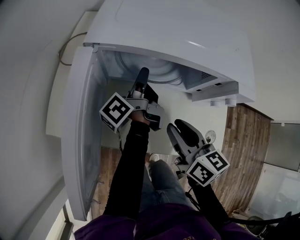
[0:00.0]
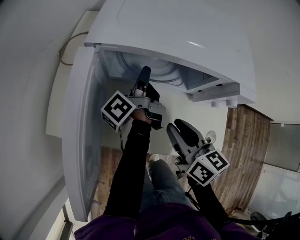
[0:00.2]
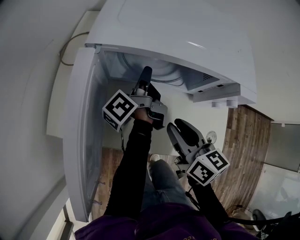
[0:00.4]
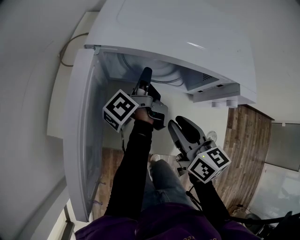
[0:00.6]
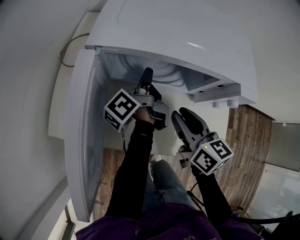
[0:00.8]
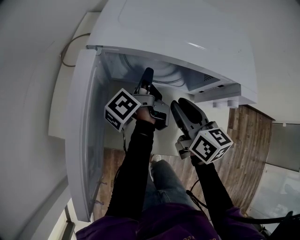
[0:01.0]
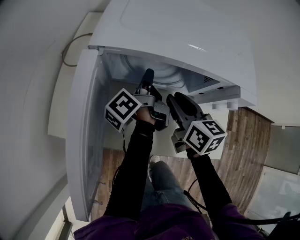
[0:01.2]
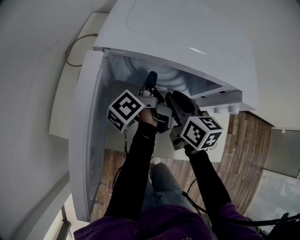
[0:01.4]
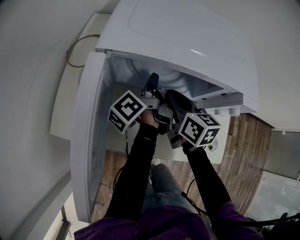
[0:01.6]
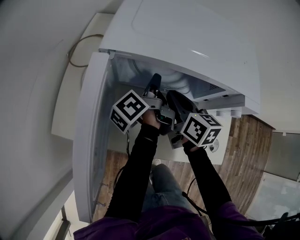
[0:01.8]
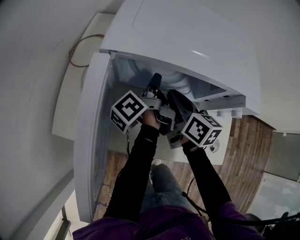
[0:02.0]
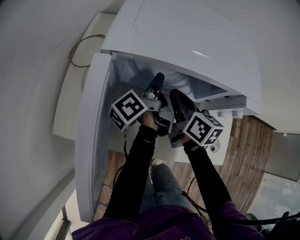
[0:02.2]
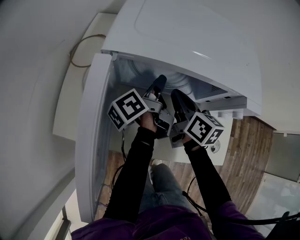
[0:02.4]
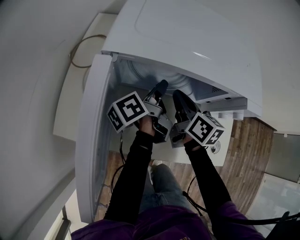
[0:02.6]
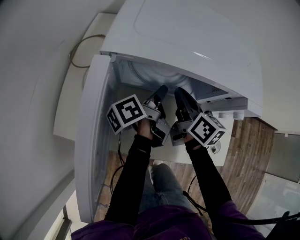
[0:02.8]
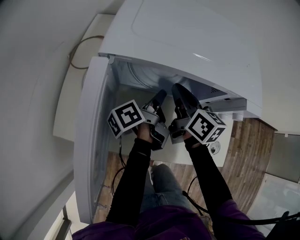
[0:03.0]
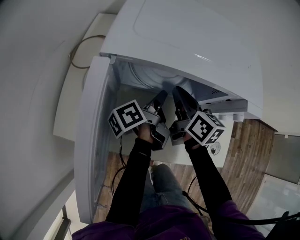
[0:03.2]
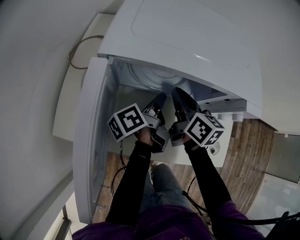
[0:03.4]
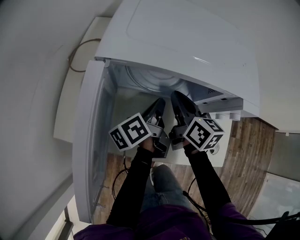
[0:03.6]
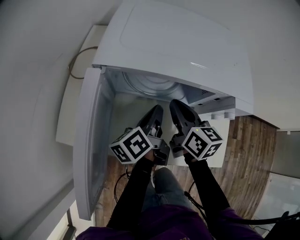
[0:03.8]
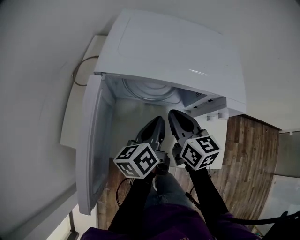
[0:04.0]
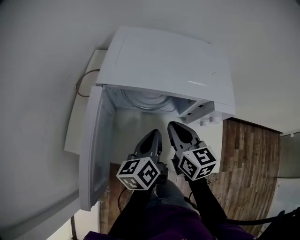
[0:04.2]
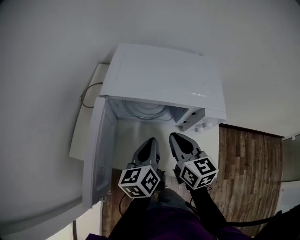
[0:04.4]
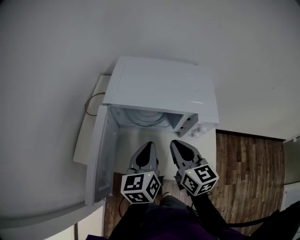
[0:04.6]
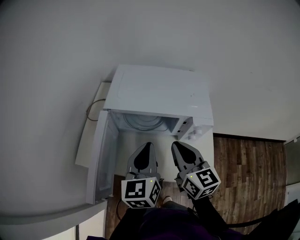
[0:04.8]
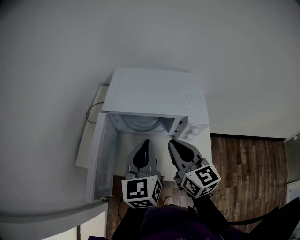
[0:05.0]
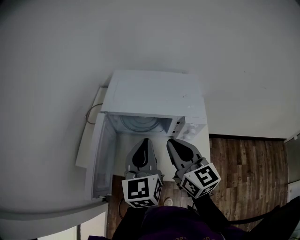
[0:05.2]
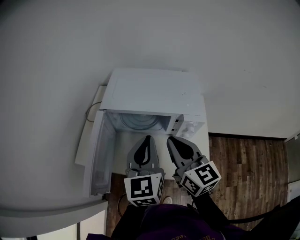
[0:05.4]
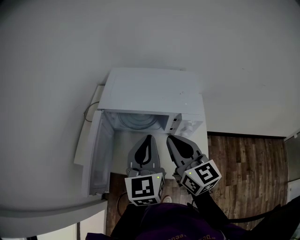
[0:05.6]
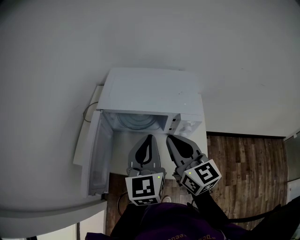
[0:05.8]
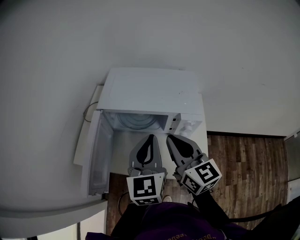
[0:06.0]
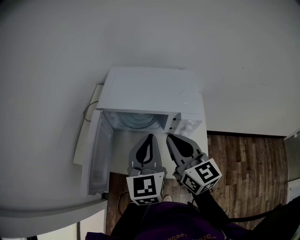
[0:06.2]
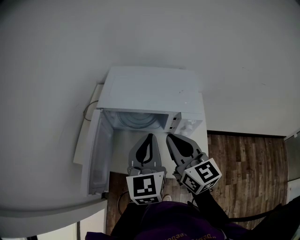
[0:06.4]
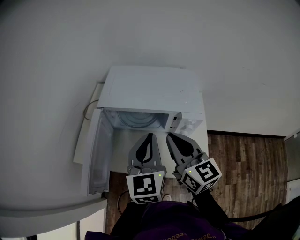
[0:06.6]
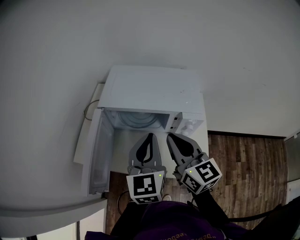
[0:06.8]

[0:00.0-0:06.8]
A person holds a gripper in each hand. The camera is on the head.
0.0 to 1.4 s: The right gripper heads forward, covering about 10 cm.
1.4 to 2.8 s: The right gripper closes its fingers.
2.8 to 4.0 s: The right gripper moves backward, about 5 cm, while the left gripper goes some 10 cm backward and upward, and rotates some 30 degrees.
4.0 to 5.4 s: The right gripper goes roughly 20 cm upward and backward. The left gripper moves upward, some 20 cm, and rotates around the line of its fingers by approximately 50 degrees, clockwise from behind.
5.4 to 6.8 s: The grippers make only small movements.

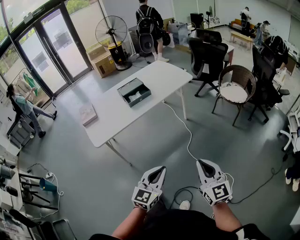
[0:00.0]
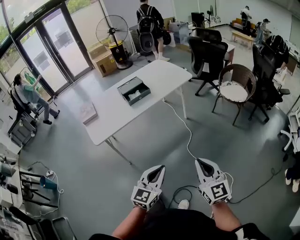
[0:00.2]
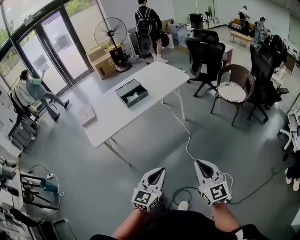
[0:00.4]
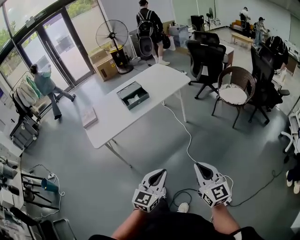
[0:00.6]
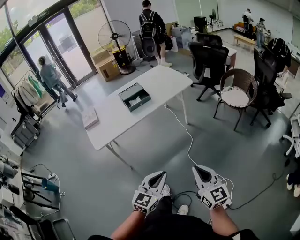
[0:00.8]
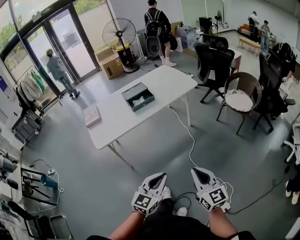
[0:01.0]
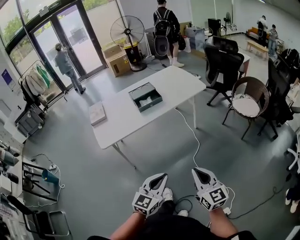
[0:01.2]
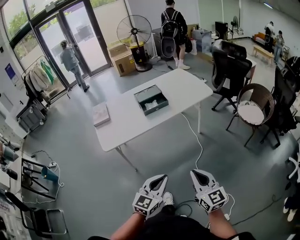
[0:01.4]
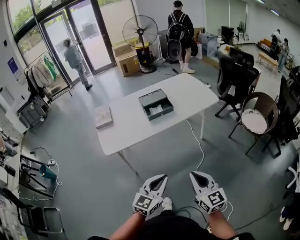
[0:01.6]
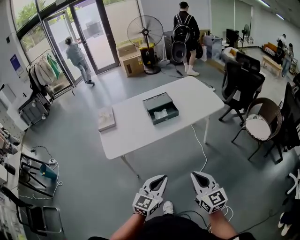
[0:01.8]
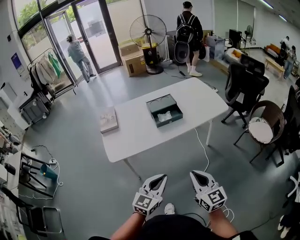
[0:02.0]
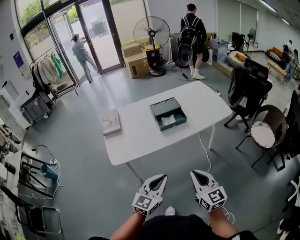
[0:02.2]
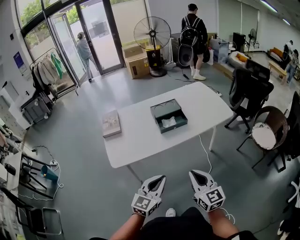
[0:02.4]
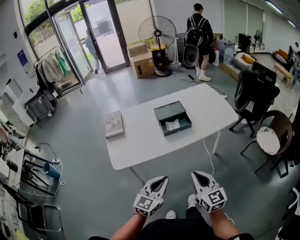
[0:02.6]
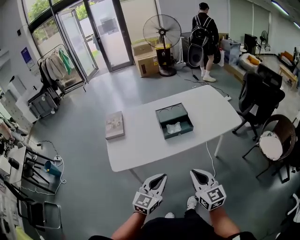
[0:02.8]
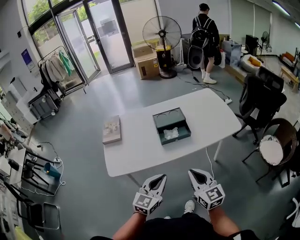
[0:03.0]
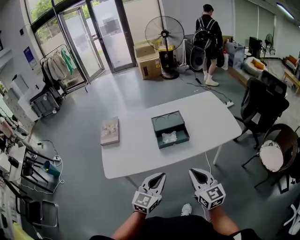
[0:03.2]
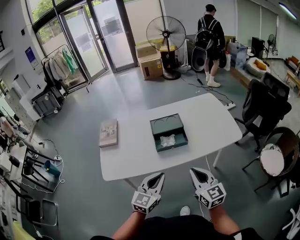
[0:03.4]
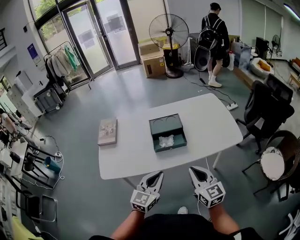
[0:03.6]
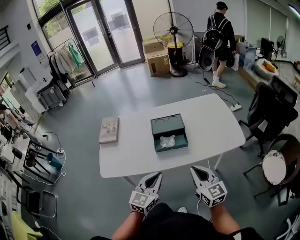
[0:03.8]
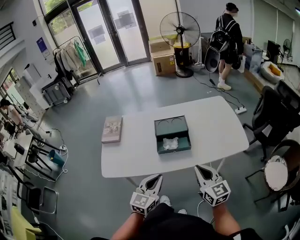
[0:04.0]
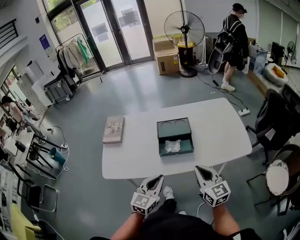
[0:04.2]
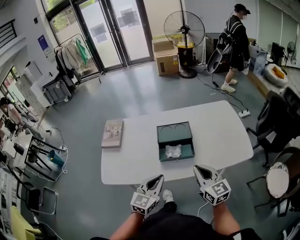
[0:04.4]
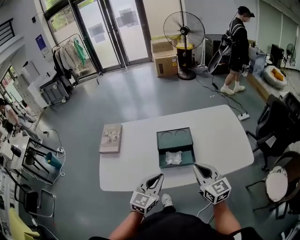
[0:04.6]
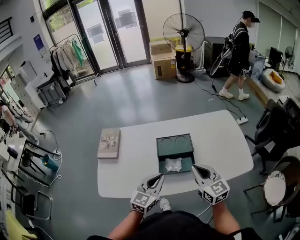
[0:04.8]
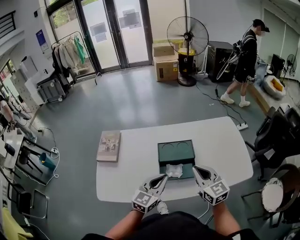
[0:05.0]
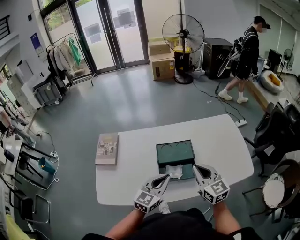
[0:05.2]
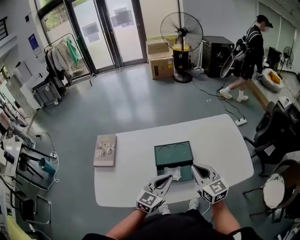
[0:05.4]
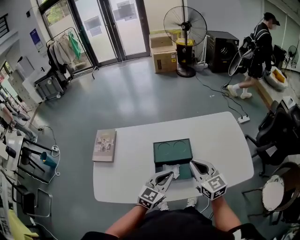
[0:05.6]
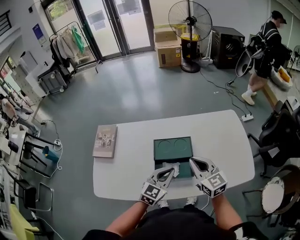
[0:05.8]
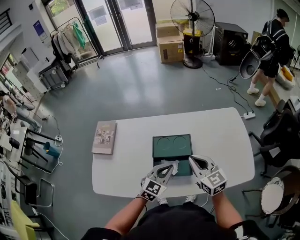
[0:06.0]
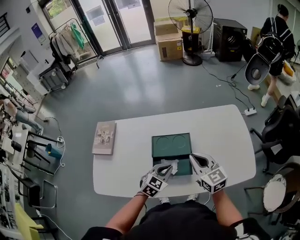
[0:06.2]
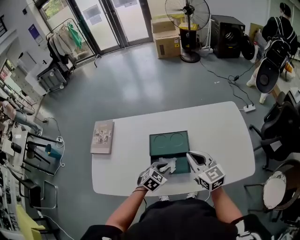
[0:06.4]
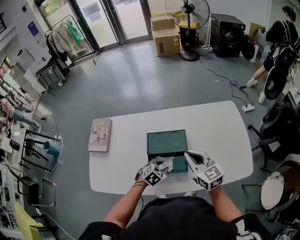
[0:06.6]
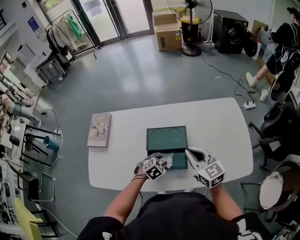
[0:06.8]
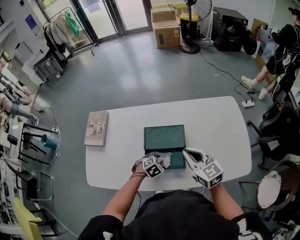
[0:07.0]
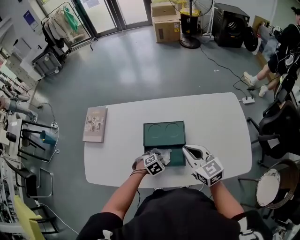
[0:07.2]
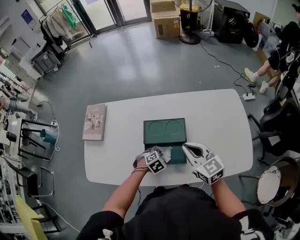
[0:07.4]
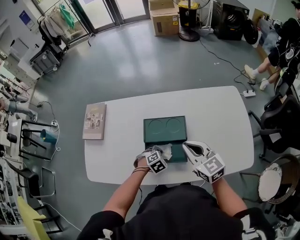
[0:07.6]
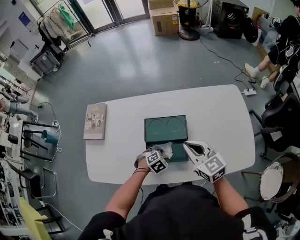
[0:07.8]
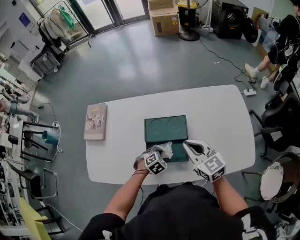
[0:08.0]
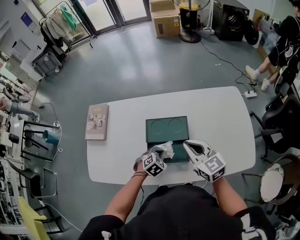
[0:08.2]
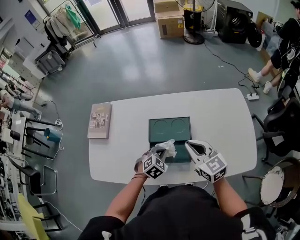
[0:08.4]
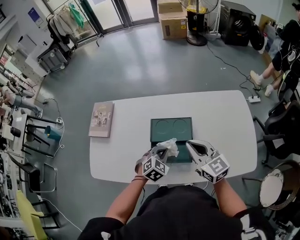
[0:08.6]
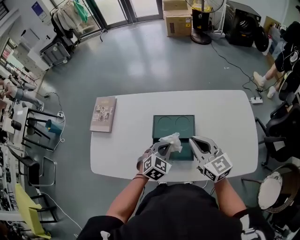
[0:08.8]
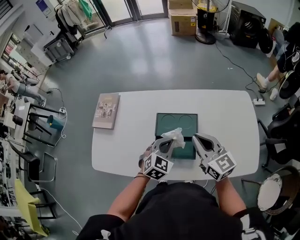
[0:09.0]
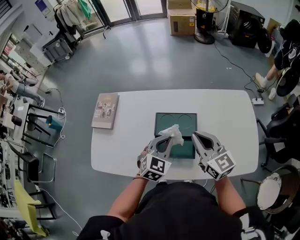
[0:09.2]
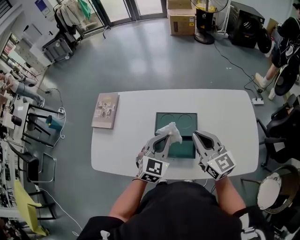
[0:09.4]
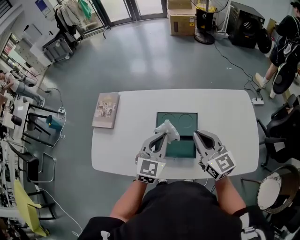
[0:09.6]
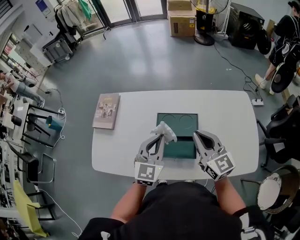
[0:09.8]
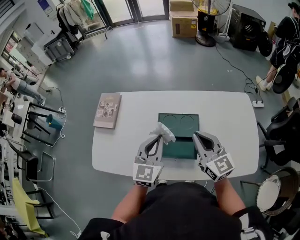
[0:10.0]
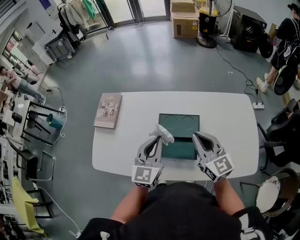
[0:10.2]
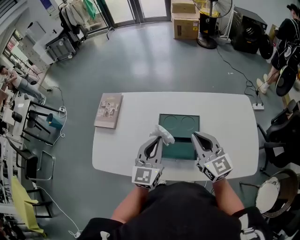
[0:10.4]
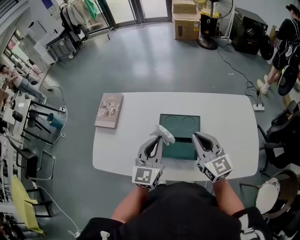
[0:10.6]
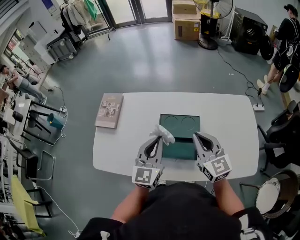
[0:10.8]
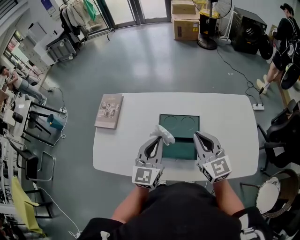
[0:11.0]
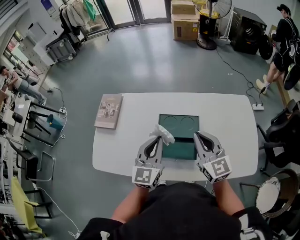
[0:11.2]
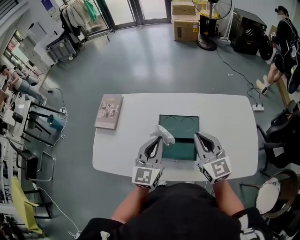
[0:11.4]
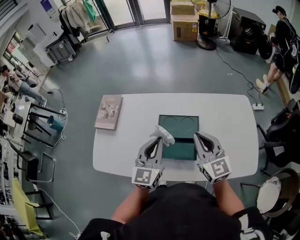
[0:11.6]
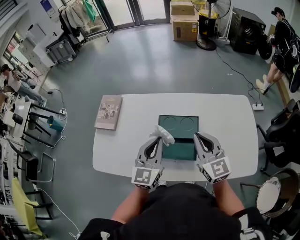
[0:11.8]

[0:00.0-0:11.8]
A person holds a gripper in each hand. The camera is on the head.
0.0 to 1.4 s: The right gripper goes roughly 10 cm forward and to the left; the left gripper is displaced forward by roughly 5 cm.
1.4 to 3.0 s: Both grippers move forward, some 30 cm.
3.0 to 4.4 s: The two grippers go roughly 20 cm forward.
4.4 to 6.0 s: Both grippers move forward, roughly 20 cm.
6.0 to 7.4 s: The left gripper moves downward, about 20 cm, tips its fingers downward by some 50 degrees, and opens, then closes once more.
7.4 to 8.8 s: The left gripper heads upward, covering some 15 cm, and changes its angle by approximately 30 degrees.
8.8 to 10.4 s: The left gripper travels upward and to the left by about 15 cm, and tips its fingers upward by about 40 degrees.
10.4 to 11.8 s: The grippers move only a little.

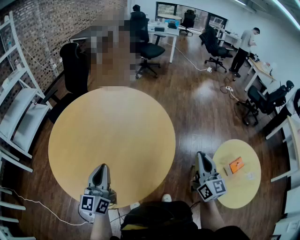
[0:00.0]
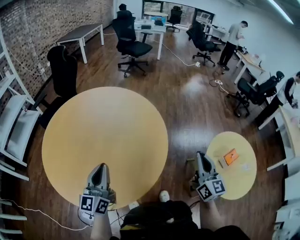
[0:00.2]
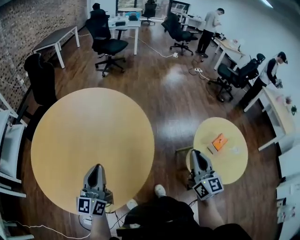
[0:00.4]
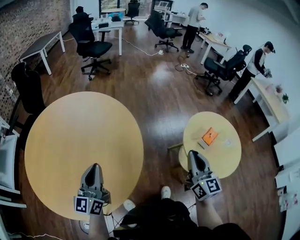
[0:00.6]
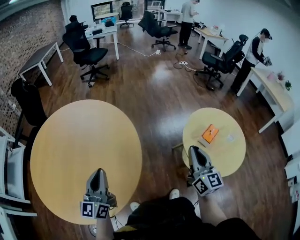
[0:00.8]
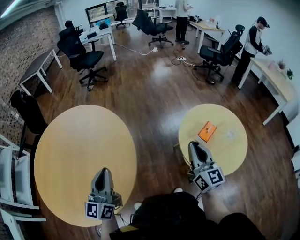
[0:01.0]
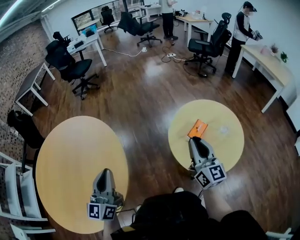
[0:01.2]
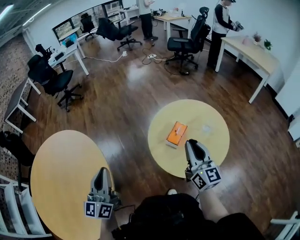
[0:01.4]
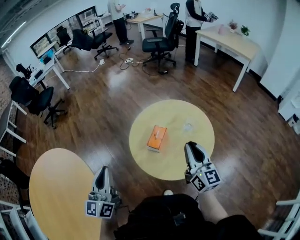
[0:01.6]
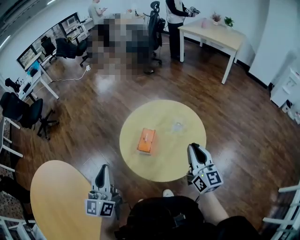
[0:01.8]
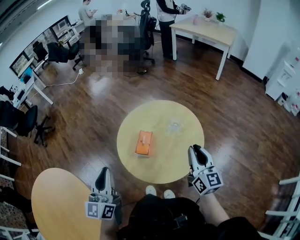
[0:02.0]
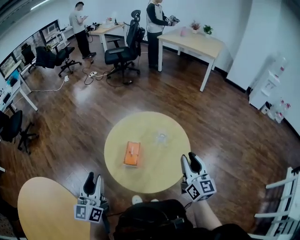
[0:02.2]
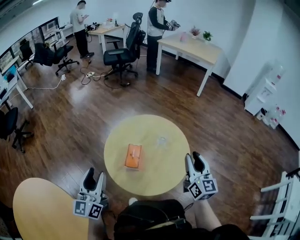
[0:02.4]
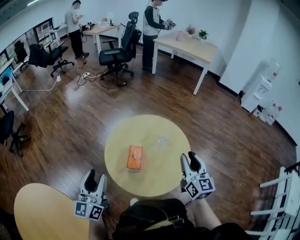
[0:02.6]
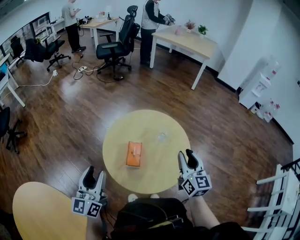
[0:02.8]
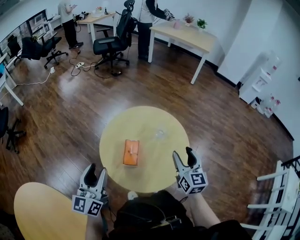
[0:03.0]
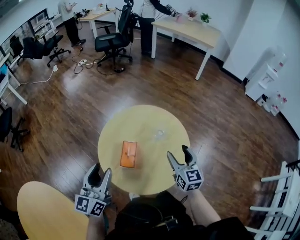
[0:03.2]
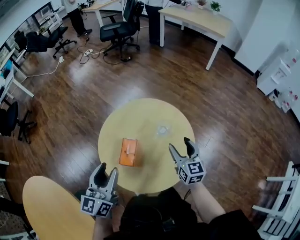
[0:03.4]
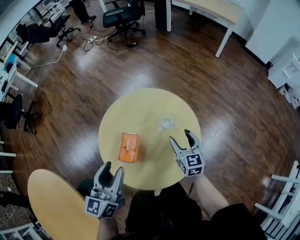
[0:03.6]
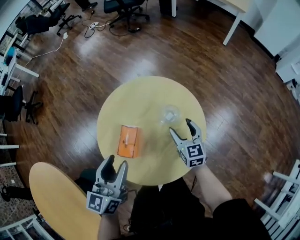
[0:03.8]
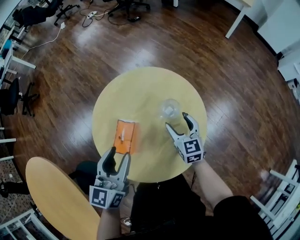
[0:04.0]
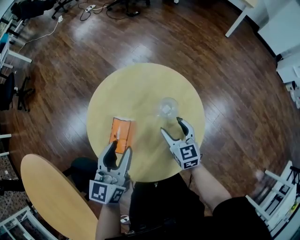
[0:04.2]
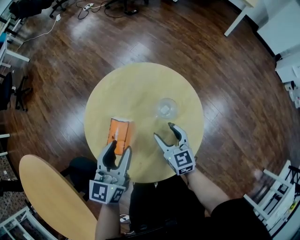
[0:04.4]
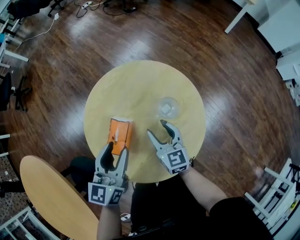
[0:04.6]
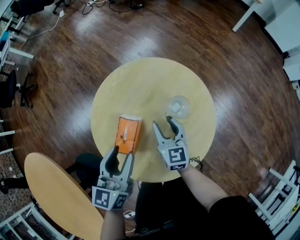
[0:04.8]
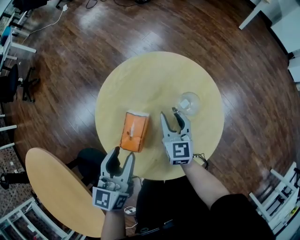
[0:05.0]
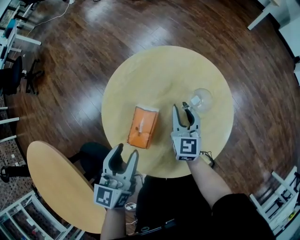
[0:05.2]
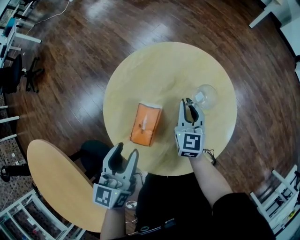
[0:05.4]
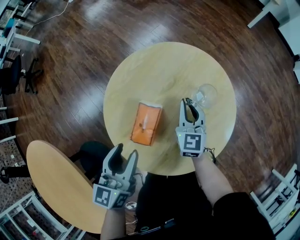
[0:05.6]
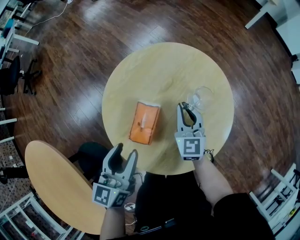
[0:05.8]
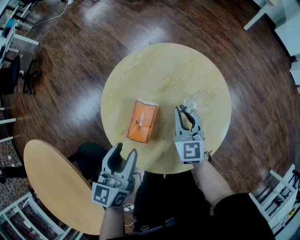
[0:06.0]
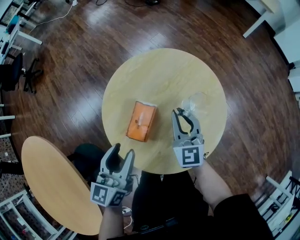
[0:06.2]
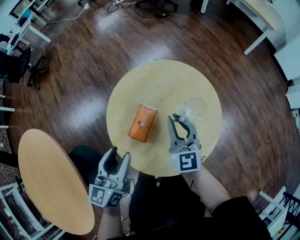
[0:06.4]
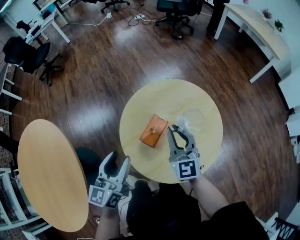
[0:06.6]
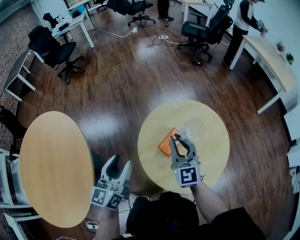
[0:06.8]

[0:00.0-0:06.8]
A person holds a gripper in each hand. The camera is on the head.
0.0 to 1.4 s: The left gripper shifts by approximately 40 cm, and changes its angle by roughly 30 degrees, while the right gripper moves about 35 cm, and swivels some 30 degrees.
1.4 to 2.8 s: The left gripper moves about 25 cm, changes its angle by roughly 30 degrees, and opens its fingers. The right gripper ends up roughly 15 cm from where it was, and changes its angle by about 40 degrees.
2.8 to 4.0 s: The left gripper heads to the right, forward and downward, covering approximately 25 cm. Meanwhile the right gripper goes about 25 cm downward and forward, changes its angle by some 30 degrees, and opens up.
4.0 to 5.4 s: Both grippers travel together to the left, approximately 5 cm. The right gripper closes its fingers.
5.4 to 6.8 s: The left gripper changes place by about 20 cm, and rotates approximately 30 degrees, while the right gripper heads upward, covering some 20 cm, and rotates some 50 degrees.
